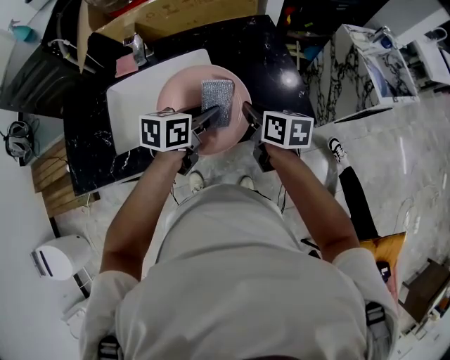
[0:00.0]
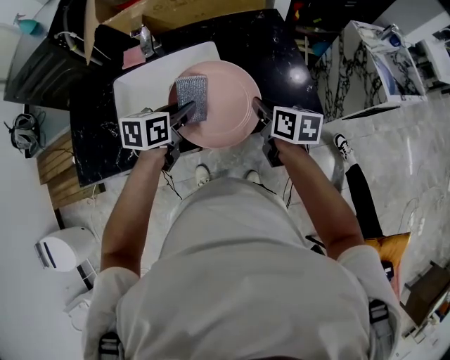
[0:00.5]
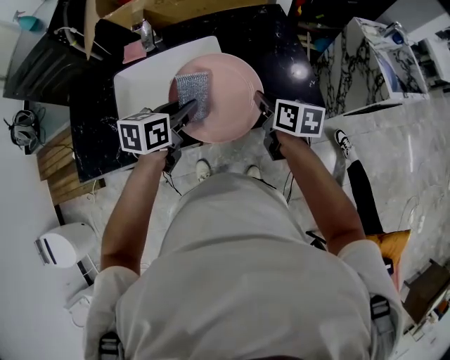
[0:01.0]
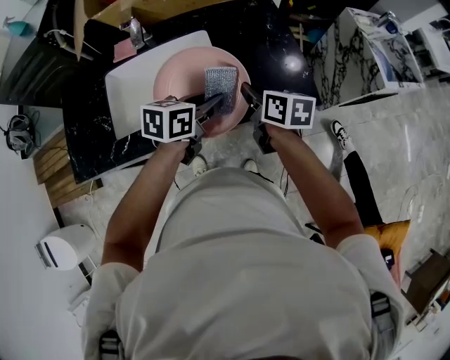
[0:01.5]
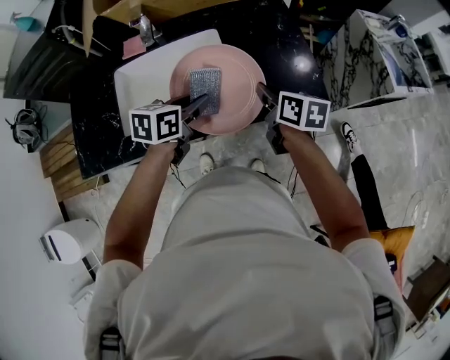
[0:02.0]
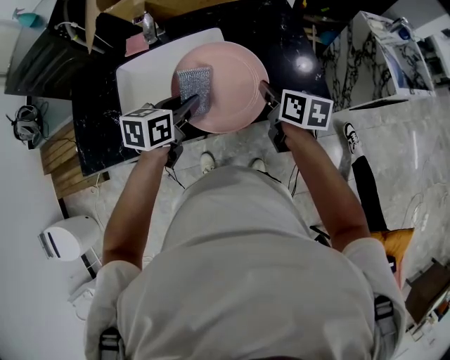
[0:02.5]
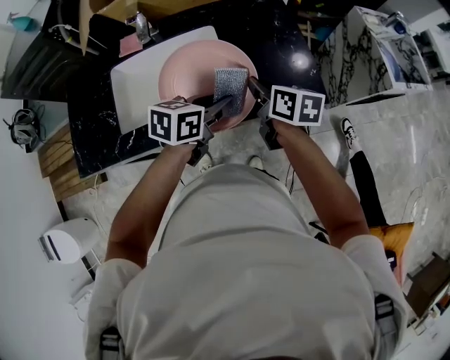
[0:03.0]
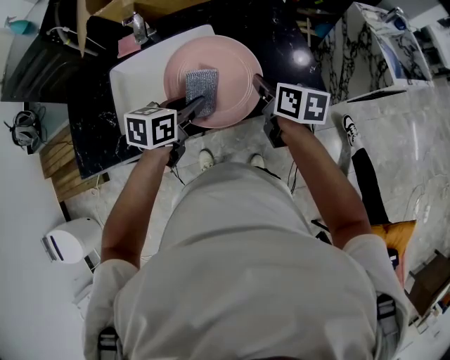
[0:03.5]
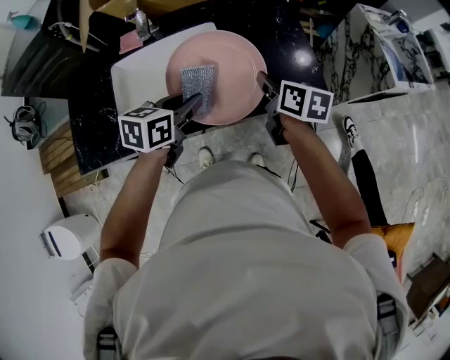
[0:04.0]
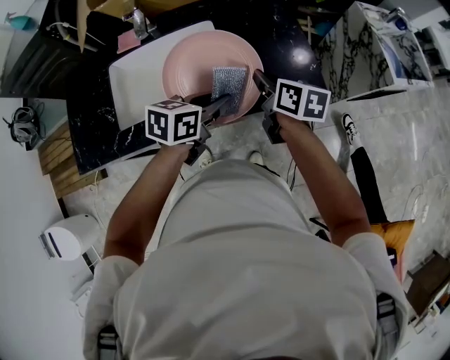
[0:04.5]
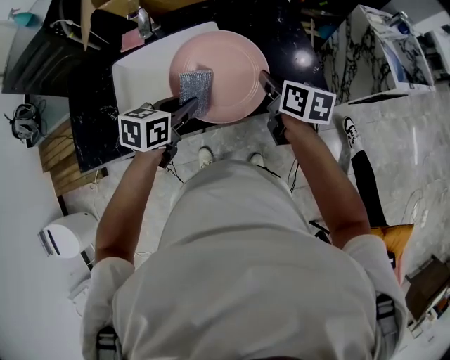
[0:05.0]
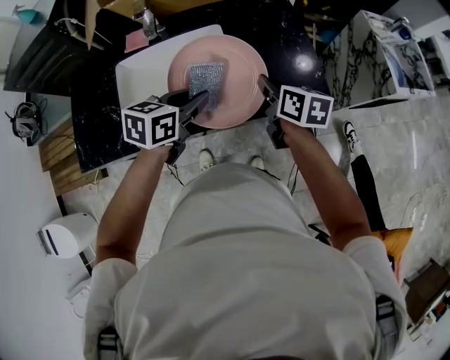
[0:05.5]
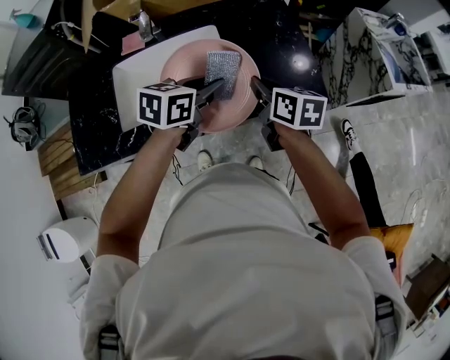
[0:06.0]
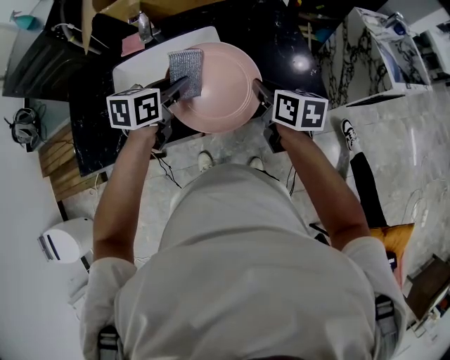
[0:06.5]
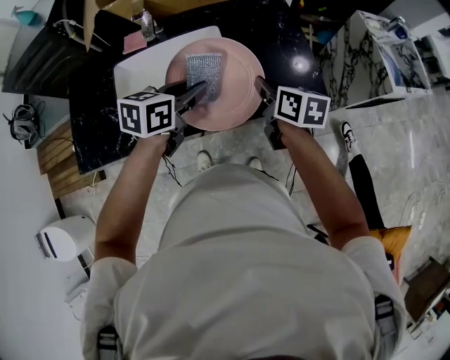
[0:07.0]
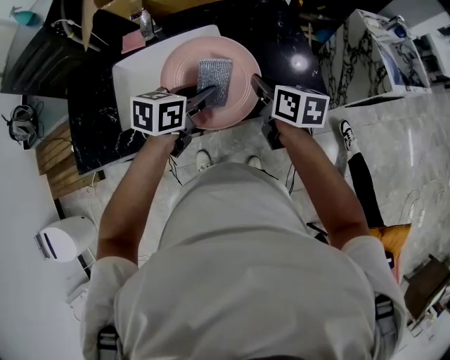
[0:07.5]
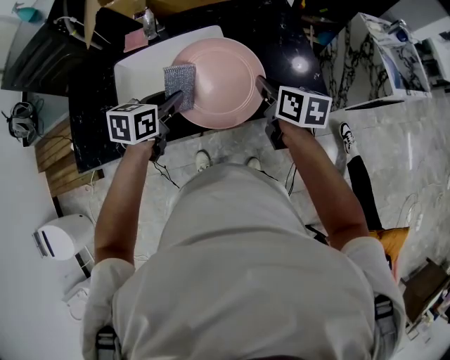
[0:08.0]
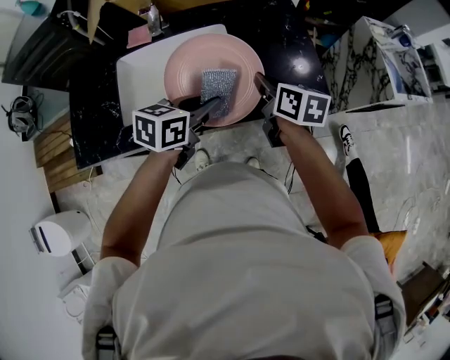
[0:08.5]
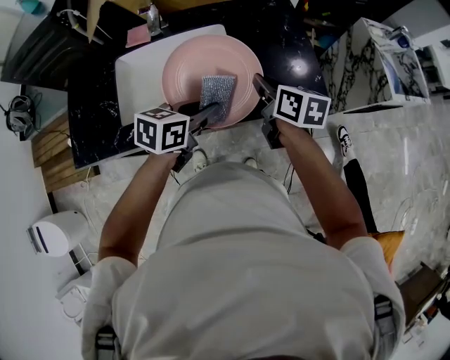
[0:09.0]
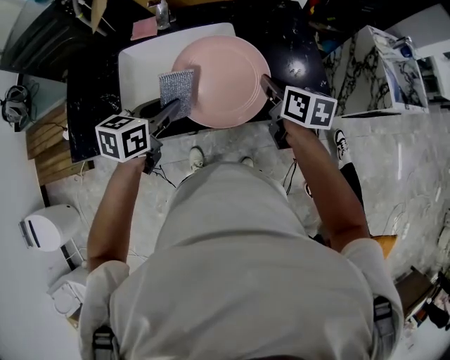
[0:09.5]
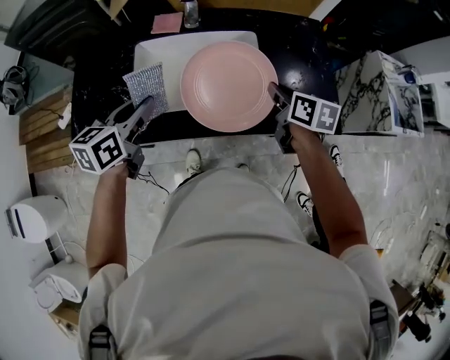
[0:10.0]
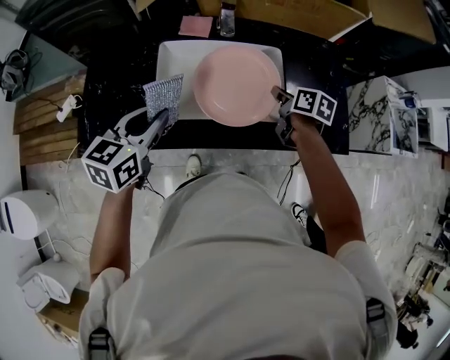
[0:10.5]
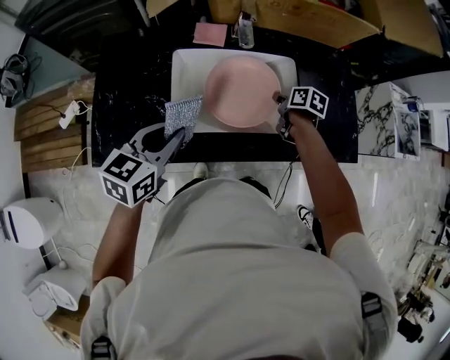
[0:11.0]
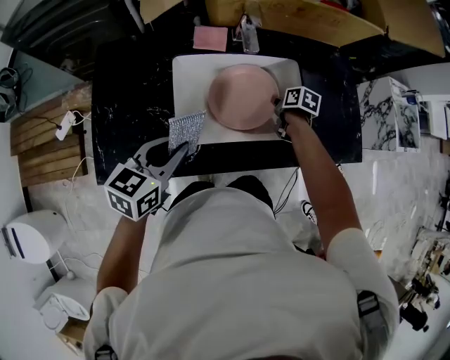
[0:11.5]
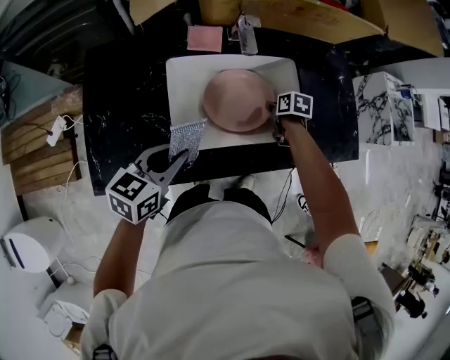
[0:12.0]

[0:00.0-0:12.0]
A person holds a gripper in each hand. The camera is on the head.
0:00.0 to 0:02.0: The left gripper moves left and right over some 10 cm, changing direction 2 times.
0:02.0 to 0:04.0: The left gripper travels to the right and back again, approximately 5 cm each way.
0:04.0 to 0:06.0: The left gripper goes left and right, approximately 10 cm each way, reversing 2 times.
0:06.0 to 0:08.0: The left gripper swings left and right, some 10 cm each way, with 2 reversals.
0:08.0 to 0:10.0: The right gripper travels to the left by approximately 5 cm, while the left gripper travels to the left and upward by roughly 15 cm, and rotates about 20 degrees.
0:10.0 to 0:12.0: The right gripper moves downward, to the left and forward, some 25 cm, and changes its angle by about 30 degrees. Meanwhile the left gripper goes approximately 10 cm to the left and downward.

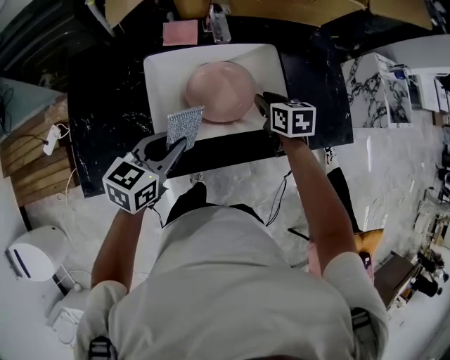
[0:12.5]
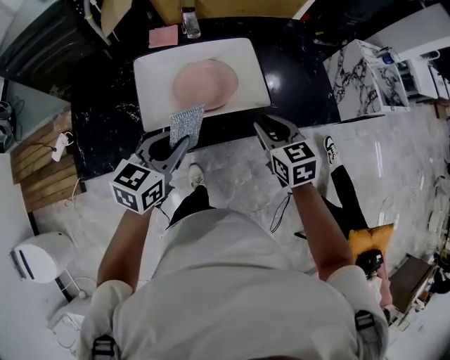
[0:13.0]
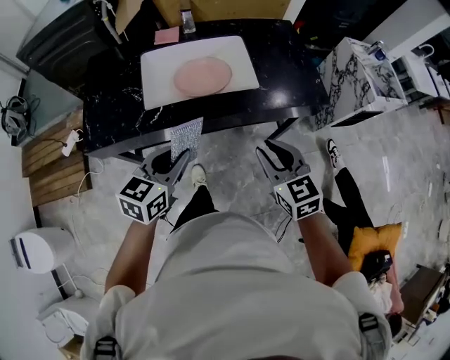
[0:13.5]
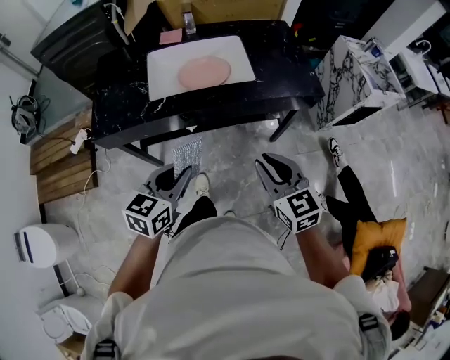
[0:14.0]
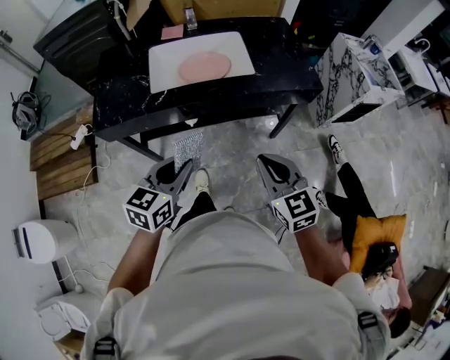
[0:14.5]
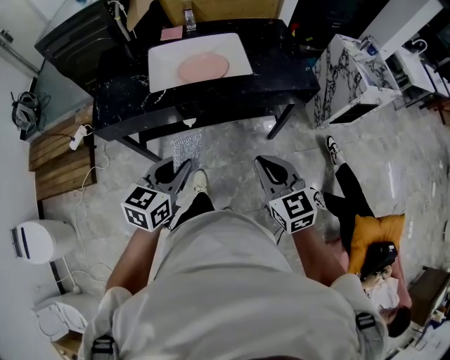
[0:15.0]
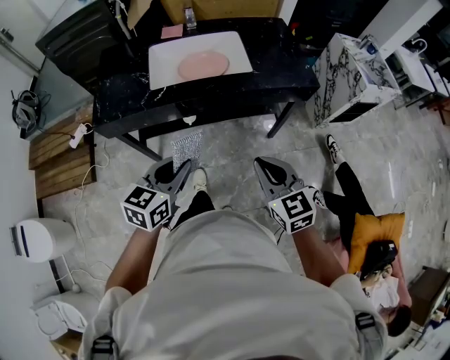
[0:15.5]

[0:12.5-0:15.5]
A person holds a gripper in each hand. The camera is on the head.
0:12.5 to 0:14.0: The left gripper heads backward and to the right, covering roughly 35 cm. The right gripper is displaced backward by approximately 40 cm, and turns by roughly 30 degrees.
0:14.0 to 0:15.5: The right gripper travels backward by some 5 cm.

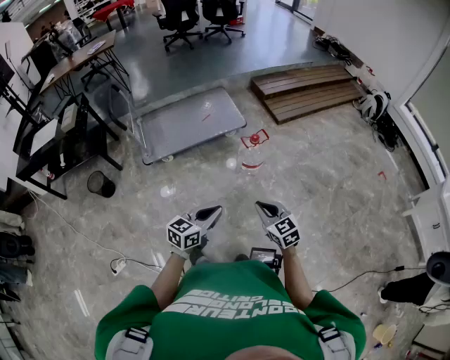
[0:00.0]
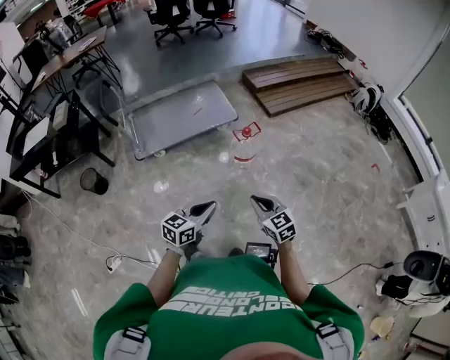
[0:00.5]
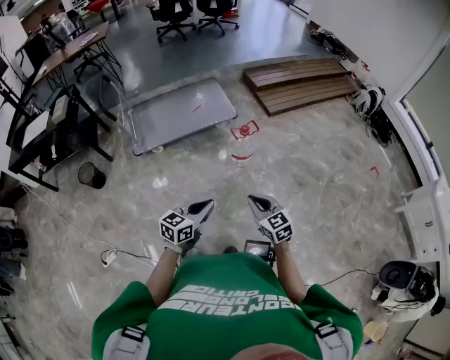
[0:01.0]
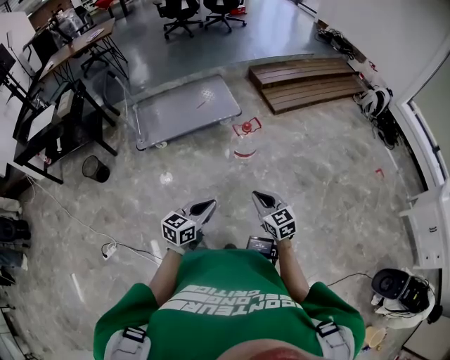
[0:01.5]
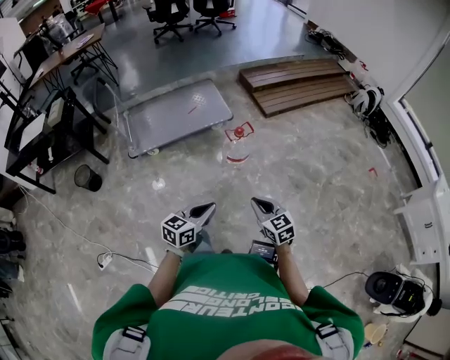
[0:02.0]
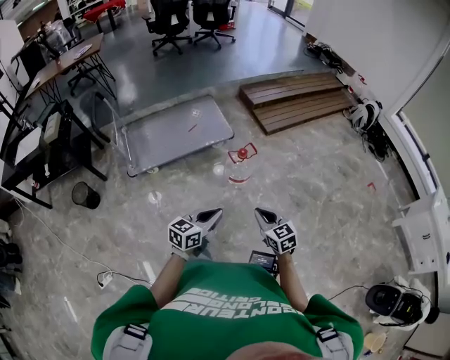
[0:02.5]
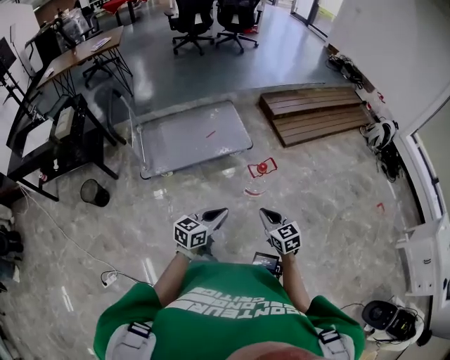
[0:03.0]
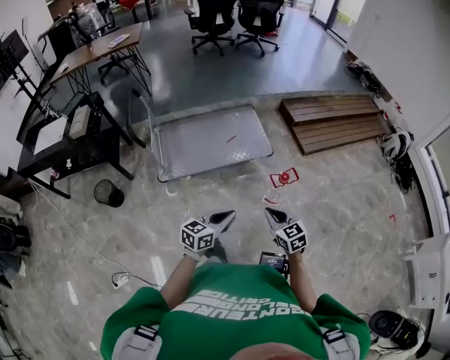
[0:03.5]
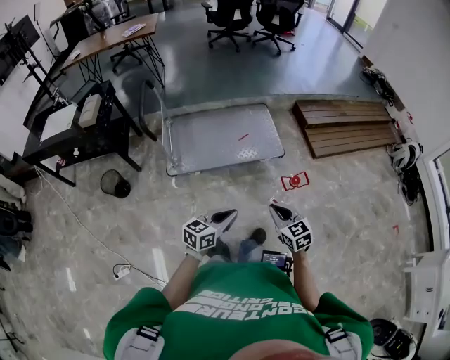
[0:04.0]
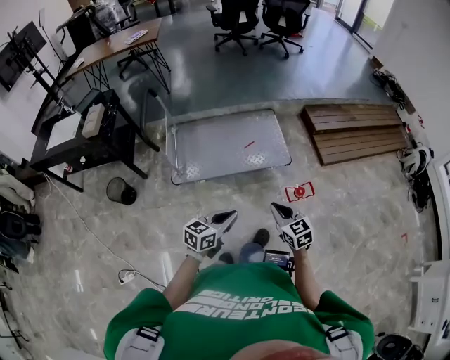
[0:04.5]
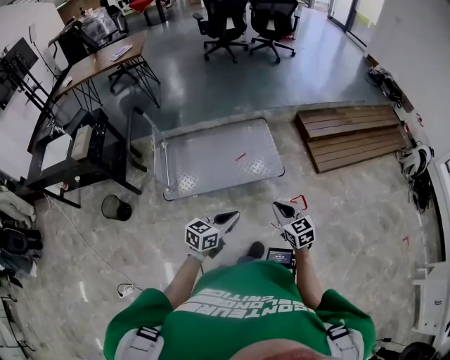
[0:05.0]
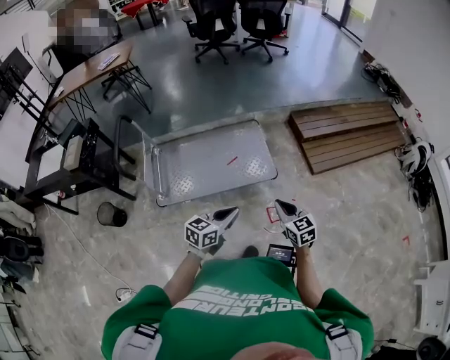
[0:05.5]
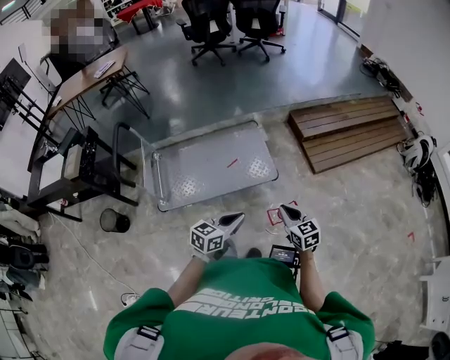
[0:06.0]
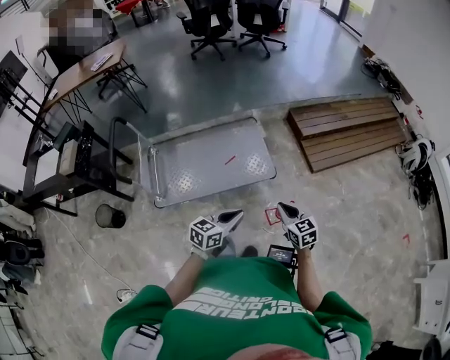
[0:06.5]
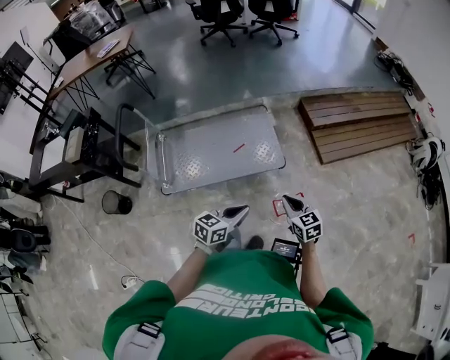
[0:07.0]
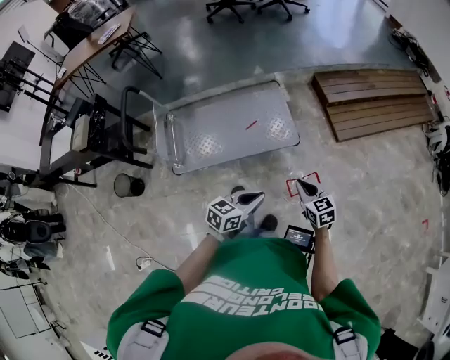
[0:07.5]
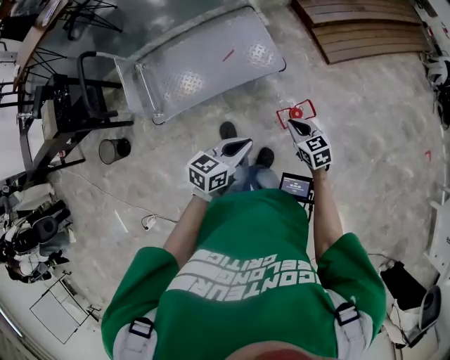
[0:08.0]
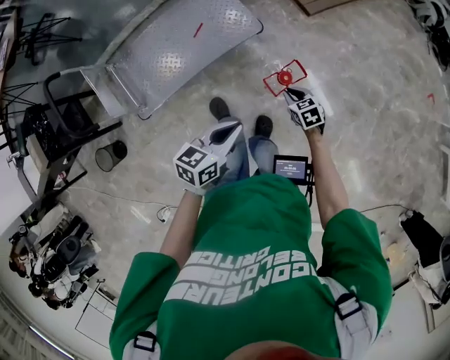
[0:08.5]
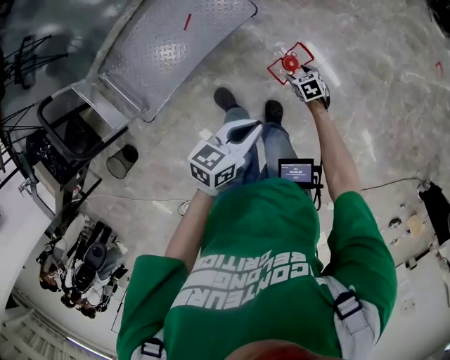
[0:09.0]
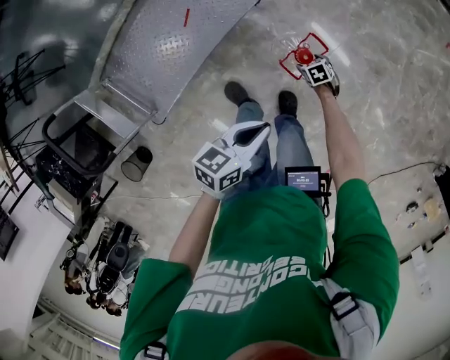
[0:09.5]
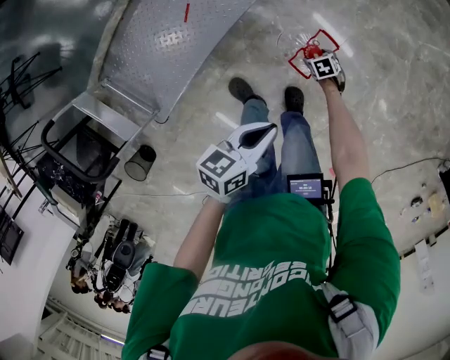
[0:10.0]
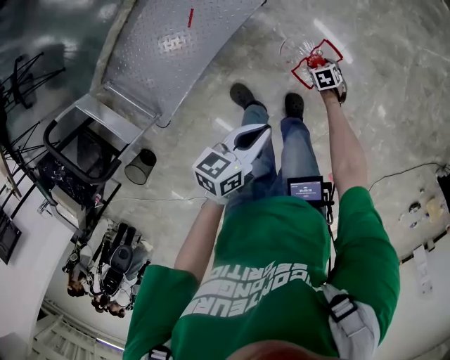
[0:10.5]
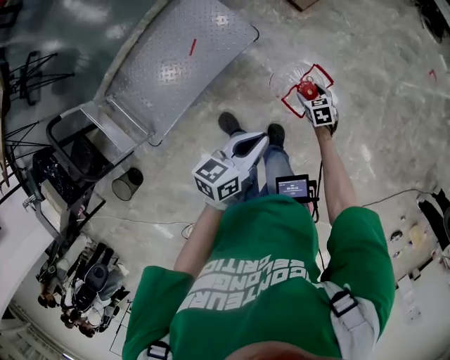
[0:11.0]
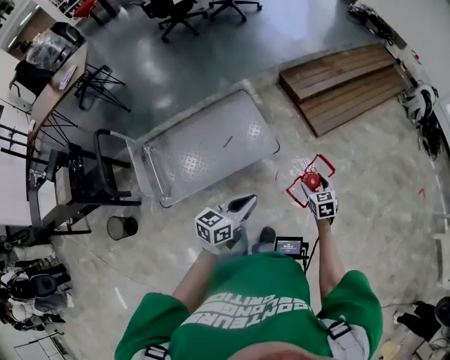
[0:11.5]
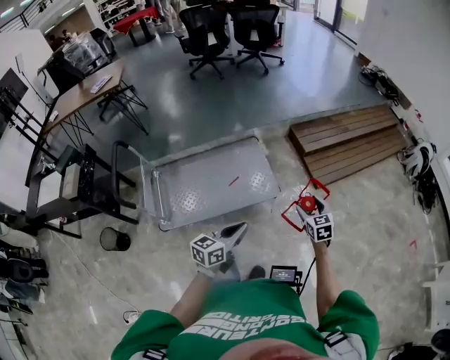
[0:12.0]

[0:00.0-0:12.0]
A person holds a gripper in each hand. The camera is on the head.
0:00.0 to 0:02.0: The two grippers go some 5 cm to the right.
0:02.0 to 0:04.0: The two grippers go roughly 35 cm to the left and forward.
0:04.0 to 0:06.0: The grippers both shift forward and to the right by some 30 cm.
0:06.0 to 0:08.0: The right gripper travels downward by approximately 10 cm, while the left gripper heads downward, covering about 5 cm.
0:08.0 to 0:10.0: The left gripper is displaced downward by approximately 10 cm, and rotates roughly 30 degrees; the right gripper goes about 40 cm downward, angles its fingers downward, by some 40 degrees, and opens.
0:10.0 to 0:12.0: The right gripper travels upward by roughly 50 cm, and tilts its fingers roughly 50 degrees upward. The left gripper is displaced upward by about 20 cm, and turns by roughly 40 degrees.
